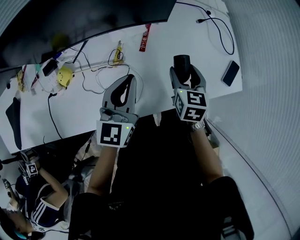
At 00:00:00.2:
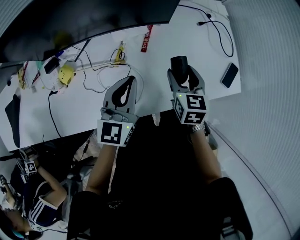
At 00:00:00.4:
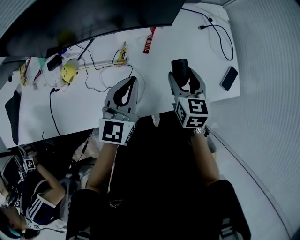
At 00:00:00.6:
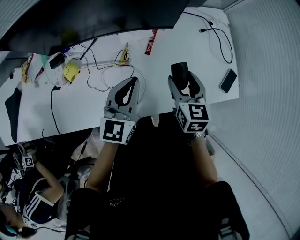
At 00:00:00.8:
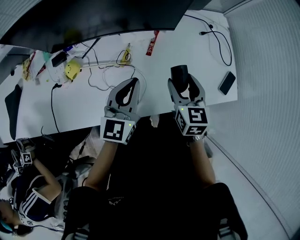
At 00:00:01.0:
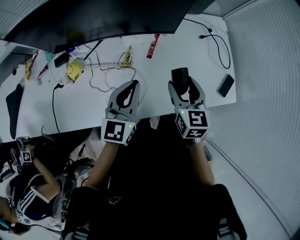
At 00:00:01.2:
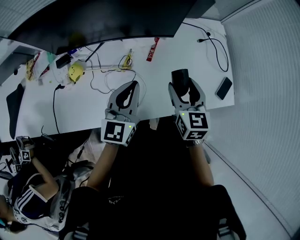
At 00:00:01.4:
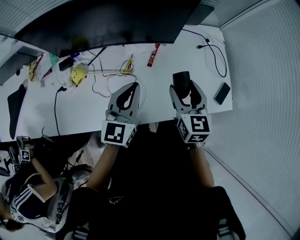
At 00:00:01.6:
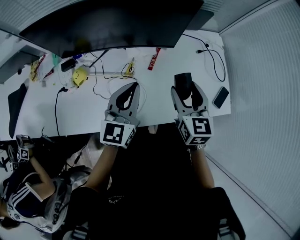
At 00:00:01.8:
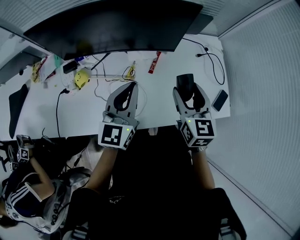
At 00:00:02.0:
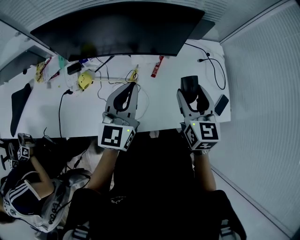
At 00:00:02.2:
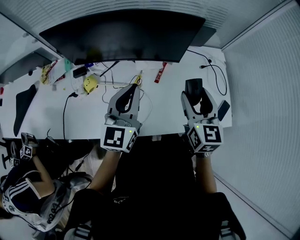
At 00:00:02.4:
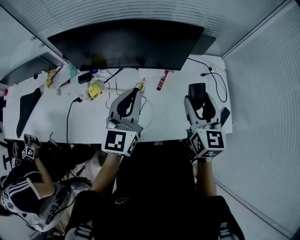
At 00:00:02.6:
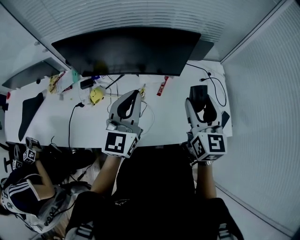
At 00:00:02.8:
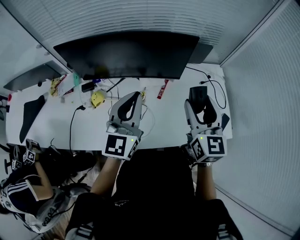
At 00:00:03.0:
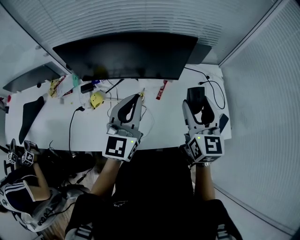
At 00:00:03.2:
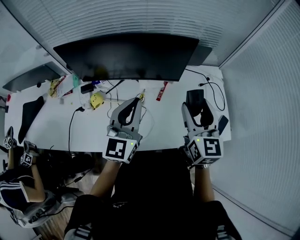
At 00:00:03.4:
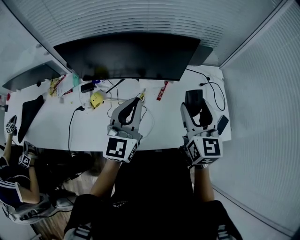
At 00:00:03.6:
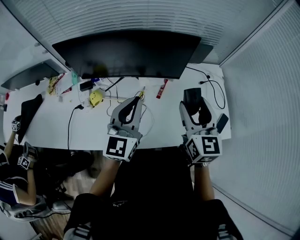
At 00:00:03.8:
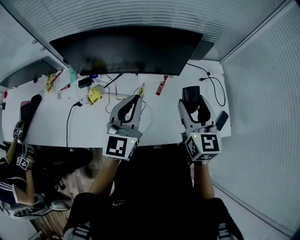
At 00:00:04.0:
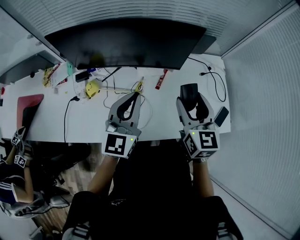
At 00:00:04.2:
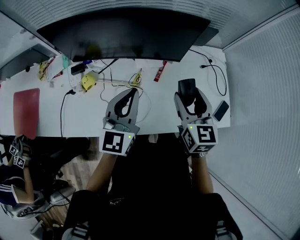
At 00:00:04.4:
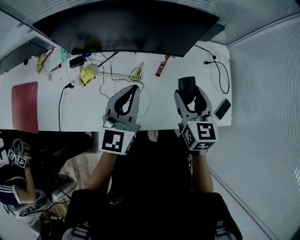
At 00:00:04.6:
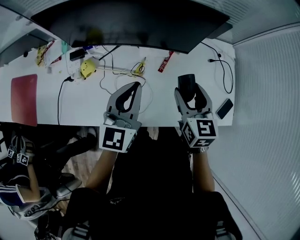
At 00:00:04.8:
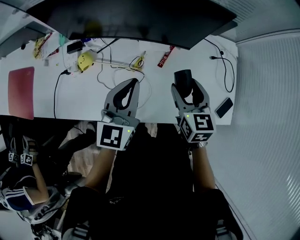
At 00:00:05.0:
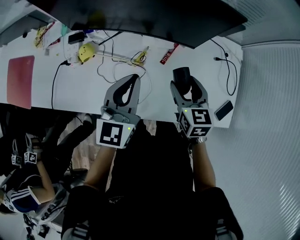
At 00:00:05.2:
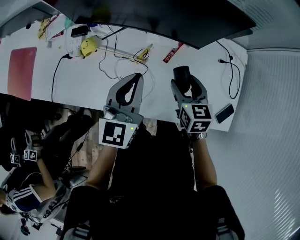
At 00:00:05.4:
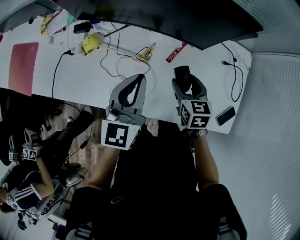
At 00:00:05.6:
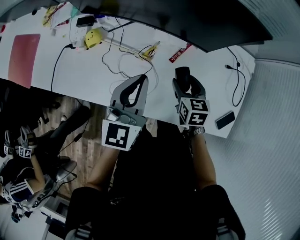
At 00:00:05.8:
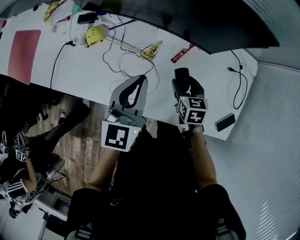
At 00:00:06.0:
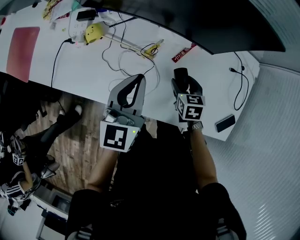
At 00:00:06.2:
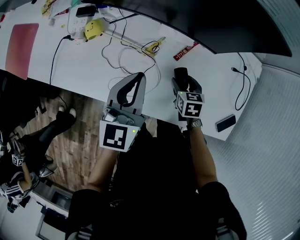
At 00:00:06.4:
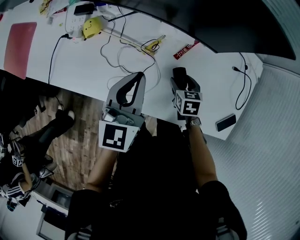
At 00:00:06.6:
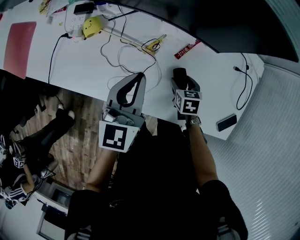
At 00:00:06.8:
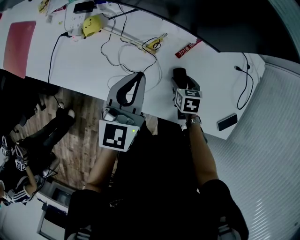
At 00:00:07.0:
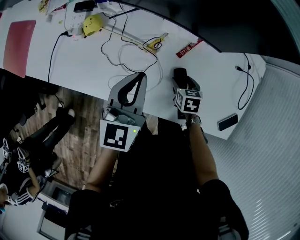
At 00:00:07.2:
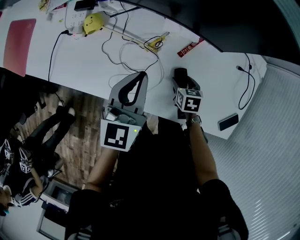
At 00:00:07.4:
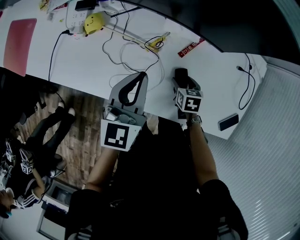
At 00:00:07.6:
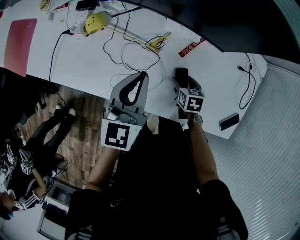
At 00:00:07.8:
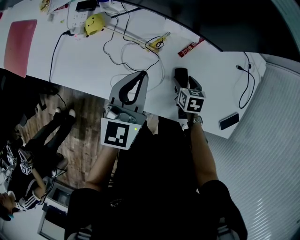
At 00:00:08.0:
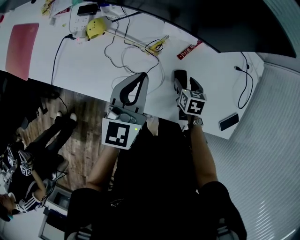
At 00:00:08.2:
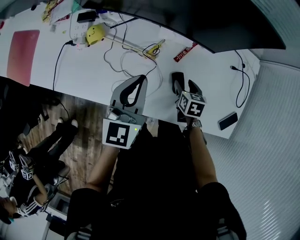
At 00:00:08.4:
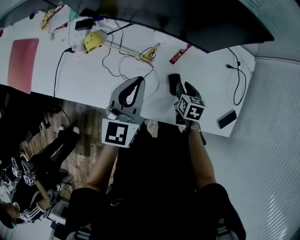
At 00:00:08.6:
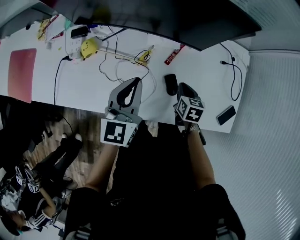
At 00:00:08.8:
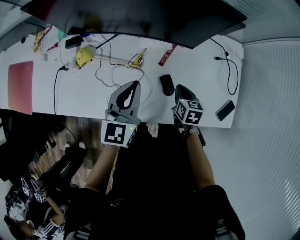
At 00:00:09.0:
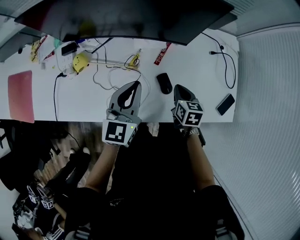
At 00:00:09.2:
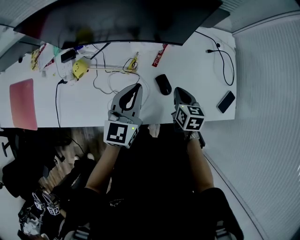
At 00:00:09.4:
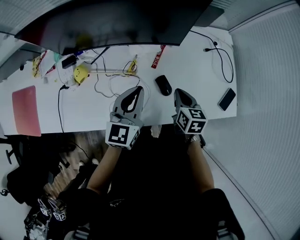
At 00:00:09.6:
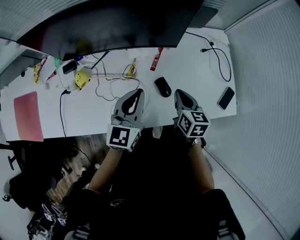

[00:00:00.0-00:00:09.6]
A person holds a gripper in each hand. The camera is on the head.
00:00:00.0 to 00:00:01.6: The right gripper heads upward, covering roughly 15 cm, and swivels some 20 degrees, while the left gripper travels upward by some 10 cm.
00:00:01.6 to 00:00:03.2: Both grippers travel together upward, about 10 cm.
00:00:03.2 to 00:00:04.8: The left gripper moves downward, approximately 10 cm, while the right gripper travels downward by about 15 cm, and turns by roughly 20 degrees.
00:00:04.8 to 00:00:06.4: The left gripper goes roughly 5 cm downward. Meanwhile the right gripper shifts some 25 cm downward, and swivels roughly 30 degrees.
00:00:06.4 to 00:00:08.0: The grippers stay close to where they were, moving slightly.
00:00:08.0 to 00:00:09.6: The right gripper shifts some 20 cm upward, rotates approximately 30 degrees, and closes its fingers; the left gripper heads to the right, covering roughly 5 cm, and turns by some 20 degrees.

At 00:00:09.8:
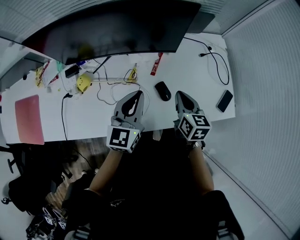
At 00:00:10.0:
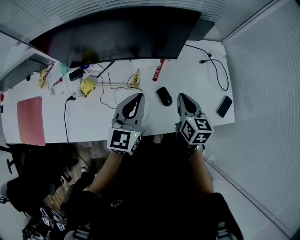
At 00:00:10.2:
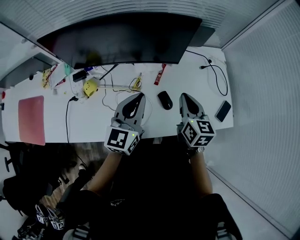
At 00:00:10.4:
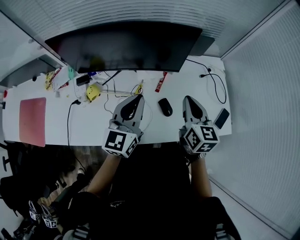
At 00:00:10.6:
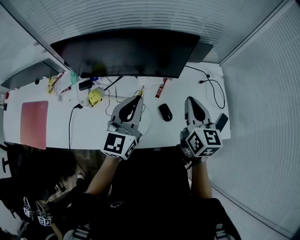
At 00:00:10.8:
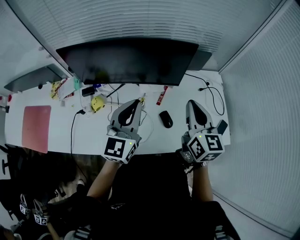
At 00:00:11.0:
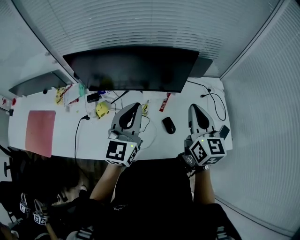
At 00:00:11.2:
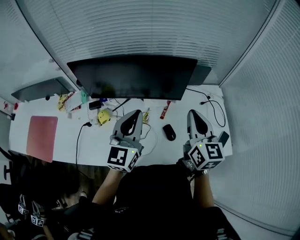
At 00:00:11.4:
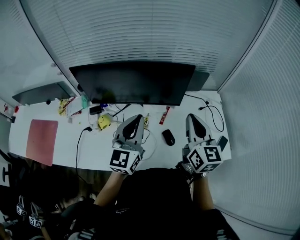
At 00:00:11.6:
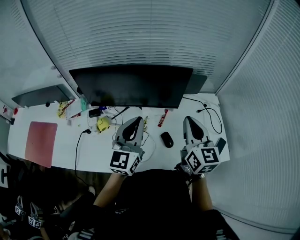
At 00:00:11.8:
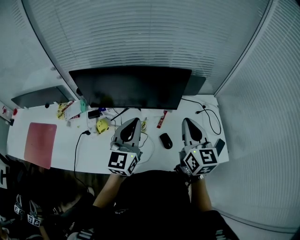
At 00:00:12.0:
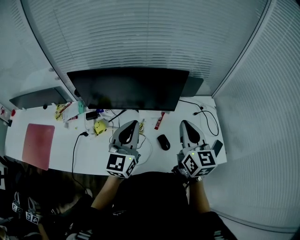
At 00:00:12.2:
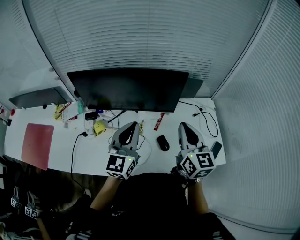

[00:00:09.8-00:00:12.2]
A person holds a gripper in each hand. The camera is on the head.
00:00:09.8 to 00:00:11.0: The two grippers go roughly 20 cm upward. The right gripper changes its angle by some 30 degrees.
00:00:11.0 to 00:00:12.2: The grippers make only small movements.

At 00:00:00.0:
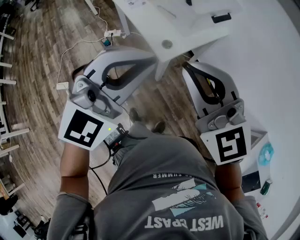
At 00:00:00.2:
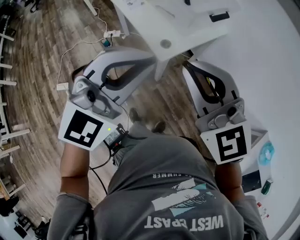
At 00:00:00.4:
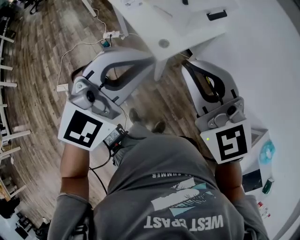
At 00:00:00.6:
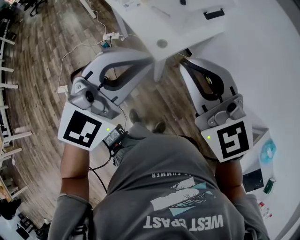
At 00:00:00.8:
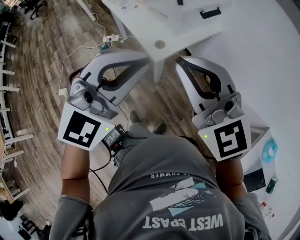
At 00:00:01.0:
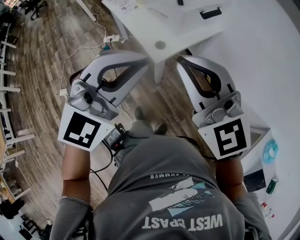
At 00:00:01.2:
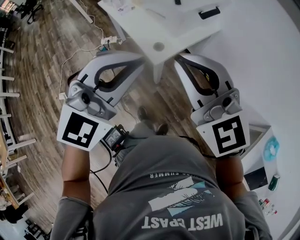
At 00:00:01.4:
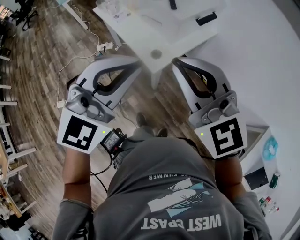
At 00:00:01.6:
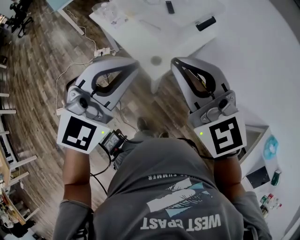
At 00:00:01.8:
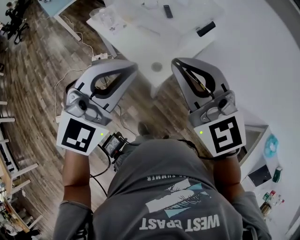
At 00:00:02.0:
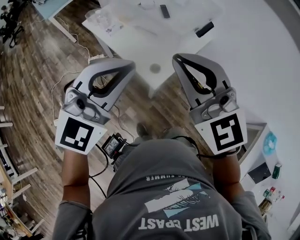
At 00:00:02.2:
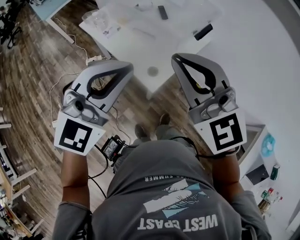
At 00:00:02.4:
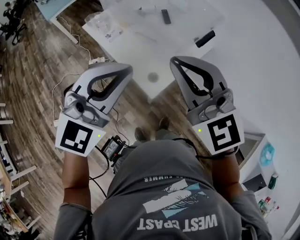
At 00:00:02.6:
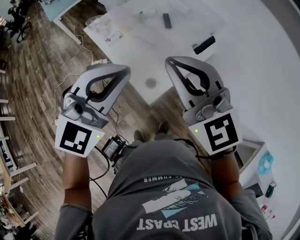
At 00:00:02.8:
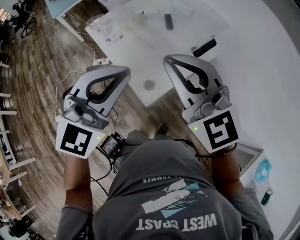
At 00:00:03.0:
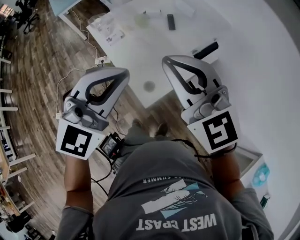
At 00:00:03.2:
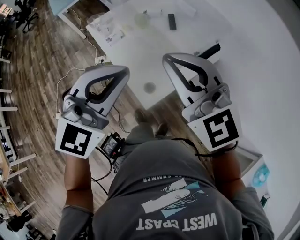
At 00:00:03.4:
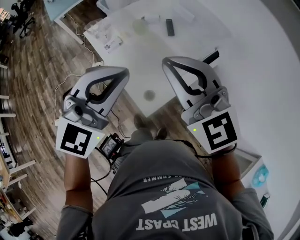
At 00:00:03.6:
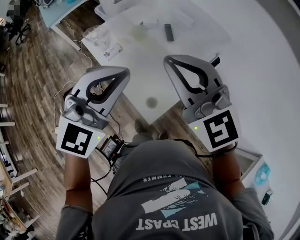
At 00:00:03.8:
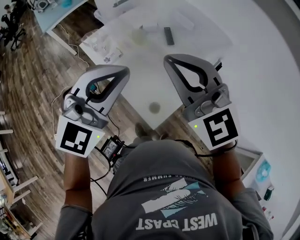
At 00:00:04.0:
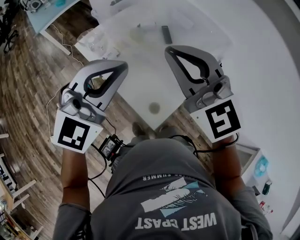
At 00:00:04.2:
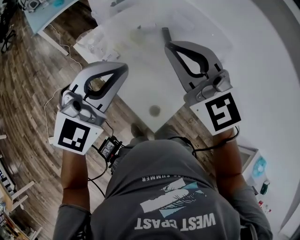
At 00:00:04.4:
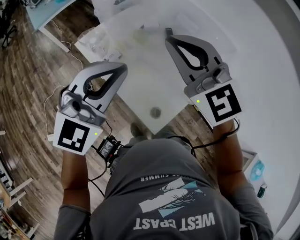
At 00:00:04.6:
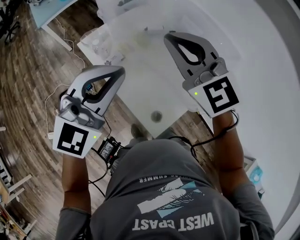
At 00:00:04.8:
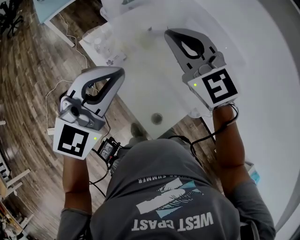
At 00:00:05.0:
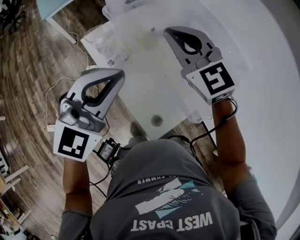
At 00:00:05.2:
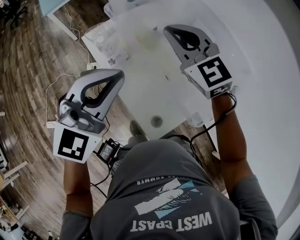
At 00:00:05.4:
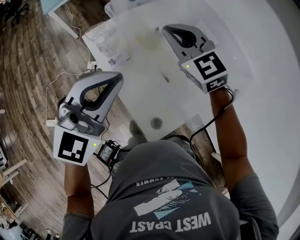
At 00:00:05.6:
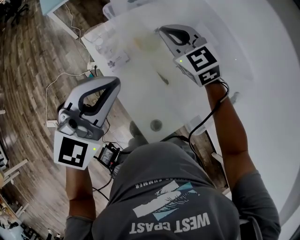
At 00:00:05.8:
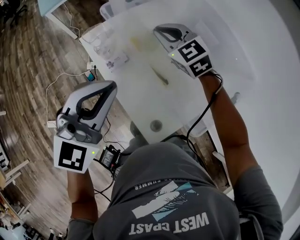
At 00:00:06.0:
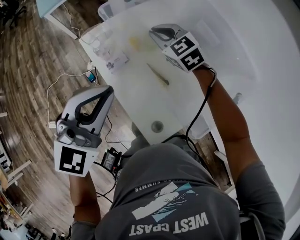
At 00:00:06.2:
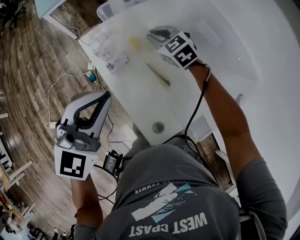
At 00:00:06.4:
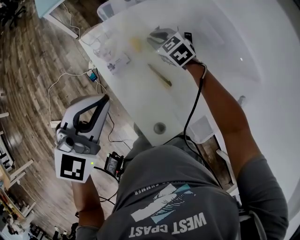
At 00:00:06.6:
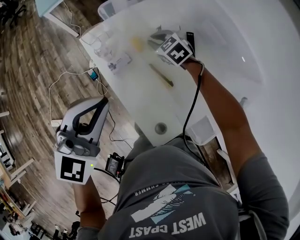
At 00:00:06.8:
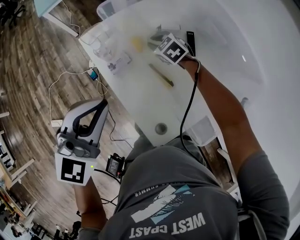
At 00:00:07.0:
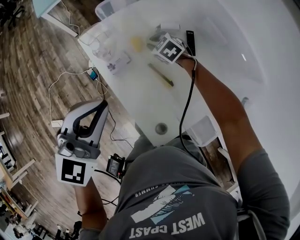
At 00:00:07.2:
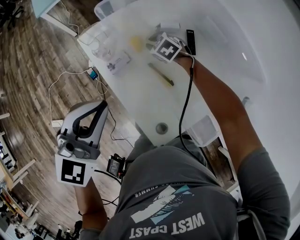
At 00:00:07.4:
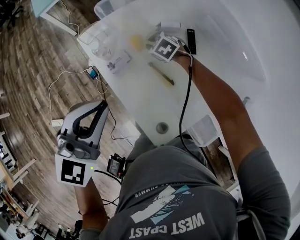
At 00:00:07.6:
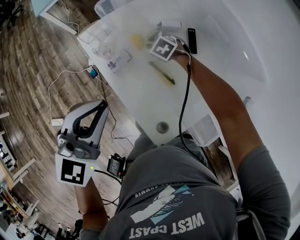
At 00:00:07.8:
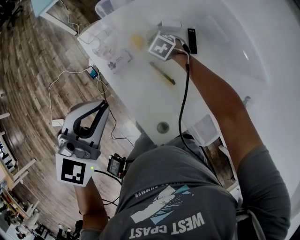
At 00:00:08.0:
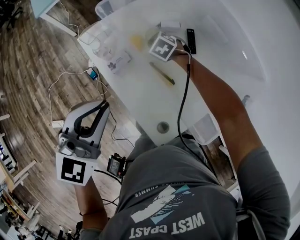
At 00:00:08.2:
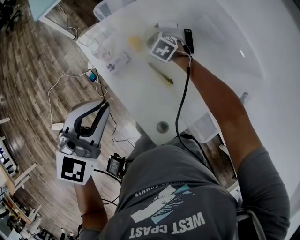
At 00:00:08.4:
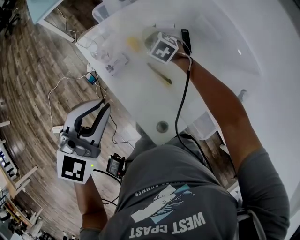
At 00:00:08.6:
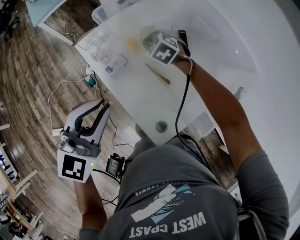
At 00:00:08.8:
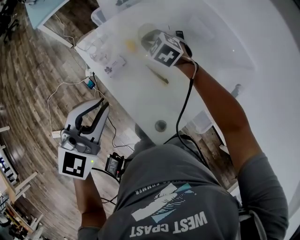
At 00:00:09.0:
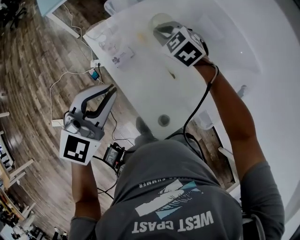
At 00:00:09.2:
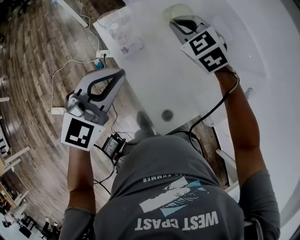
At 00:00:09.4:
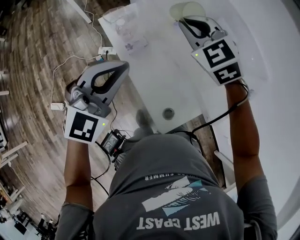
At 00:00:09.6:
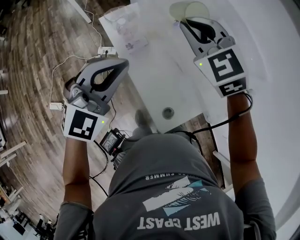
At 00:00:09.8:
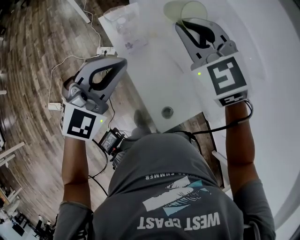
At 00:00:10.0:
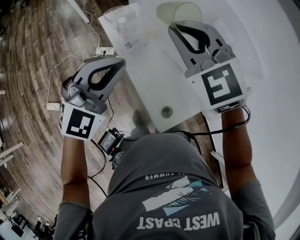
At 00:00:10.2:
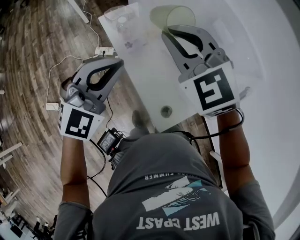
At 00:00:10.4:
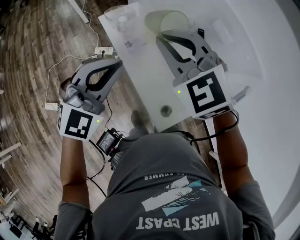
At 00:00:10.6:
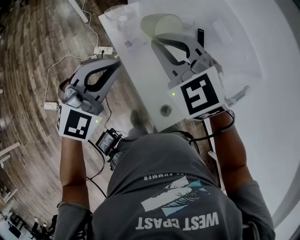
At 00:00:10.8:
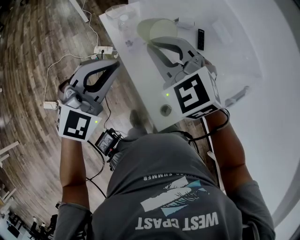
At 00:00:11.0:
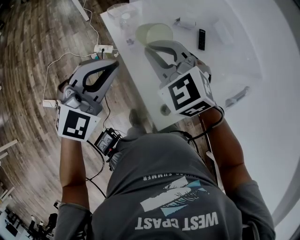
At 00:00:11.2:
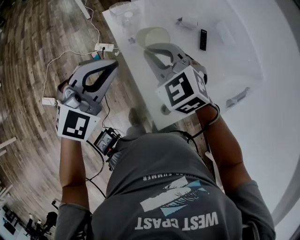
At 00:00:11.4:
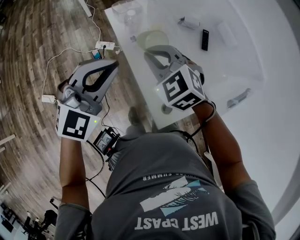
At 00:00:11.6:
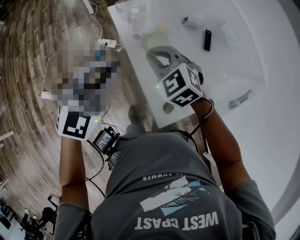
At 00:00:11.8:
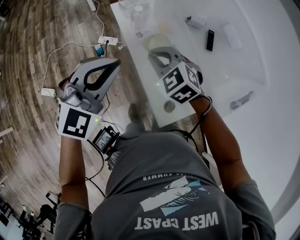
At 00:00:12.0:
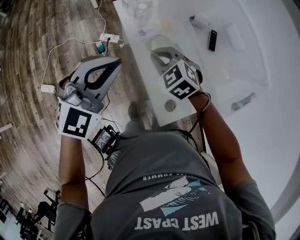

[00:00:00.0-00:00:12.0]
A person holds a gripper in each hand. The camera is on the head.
00:00:00.0 to 00:00:01.6: The two grippers go about 10 cm forward.
00:00:01.6 to 00:00:03.0: The grippers both shift forward by about 15 cm.
00:00:03.0 to 00:00:04.4: Both grippers travel together forward and to the left, some 20 cm.
00:00:04.4 to 00:00:06.0: The right gripper is displaced forward and downward by about 30 cm, and rotates roughly 30 degrees, while the left gripper travels forward by some 5 cm.
00:00:06.0 to 00:00:07.6: The right gripper travels downward by approximately 20 cm, and tilts its fingers approximately 30 degrees downward.
00:00:07.6 to 00:00:09.0: The right gripper shifts some 20 cm upward, and rotates about 20 degrees.
00:00:09.0 to 00:00:10.4: The right gripper goes approximately 20 cm backward, upward and to the left.
00:00:10.4 to 00:00:12.0: The right gripper heads downward, covering roughly 20 cm, and swivels roughly 20 degrees. The left gripper ends up about 5 cm from where it was.
